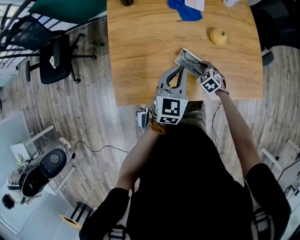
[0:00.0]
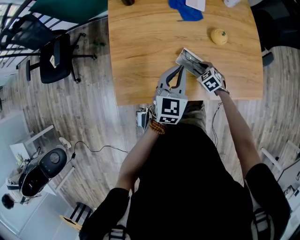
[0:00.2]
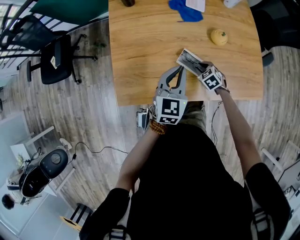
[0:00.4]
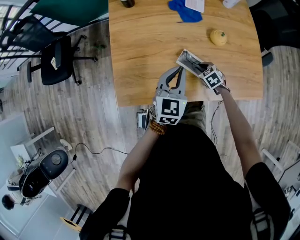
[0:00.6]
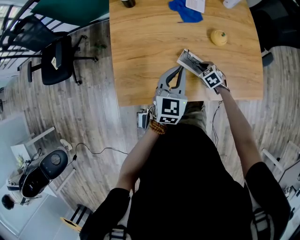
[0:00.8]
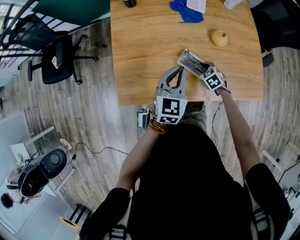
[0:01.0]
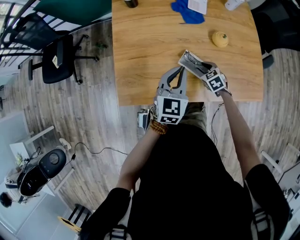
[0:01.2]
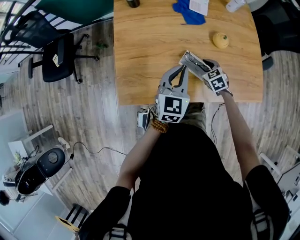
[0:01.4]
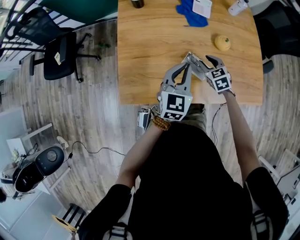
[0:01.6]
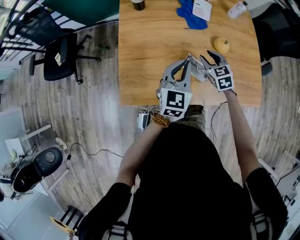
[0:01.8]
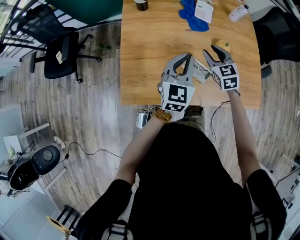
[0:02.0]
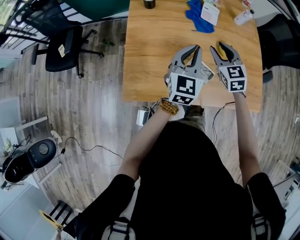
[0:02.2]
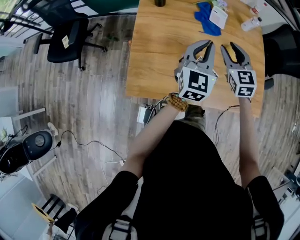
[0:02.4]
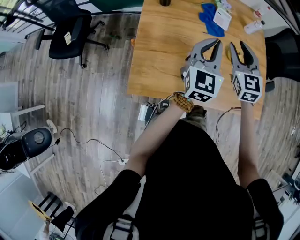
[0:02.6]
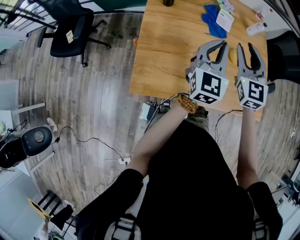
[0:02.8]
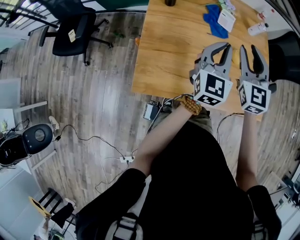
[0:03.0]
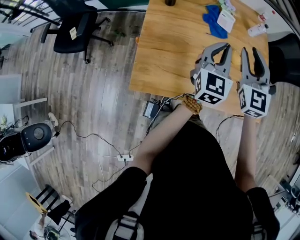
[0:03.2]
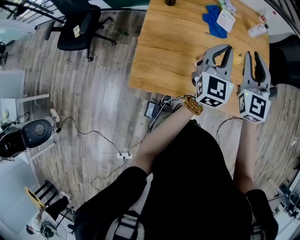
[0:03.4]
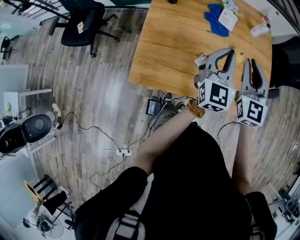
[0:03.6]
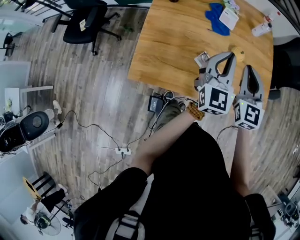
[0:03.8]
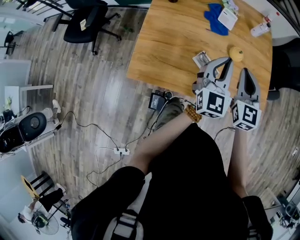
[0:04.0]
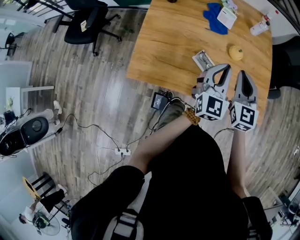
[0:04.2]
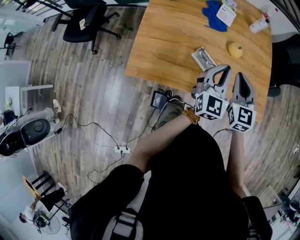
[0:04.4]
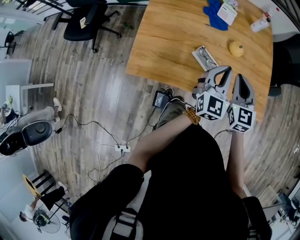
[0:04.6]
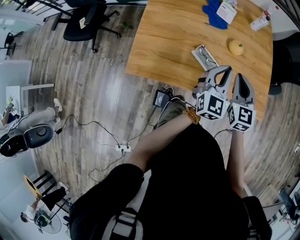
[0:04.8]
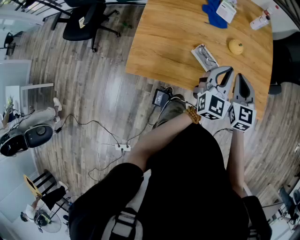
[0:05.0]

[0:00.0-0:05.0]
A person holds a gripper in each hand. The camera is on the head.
0:00.0 to 0:01.6: The right gripper heads upward, covering some 10 cm.
0:01.6 to 0:03.4: The left gripper shifts some 15 cm upward. The right gripper travels upward by some 30 cm, and points its fingers about 40 degrees further upward.
0:03.4 to 0:05.0: The left gripper heads to the right, backward and downward, covering some 15 cm; the right gripper travels downward, backward and to the right by about 20 cm.

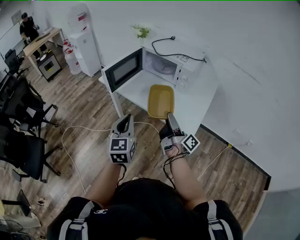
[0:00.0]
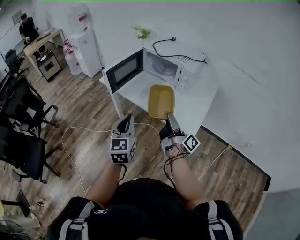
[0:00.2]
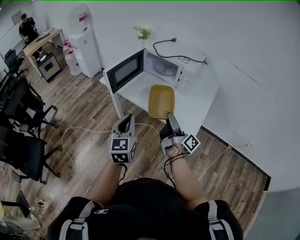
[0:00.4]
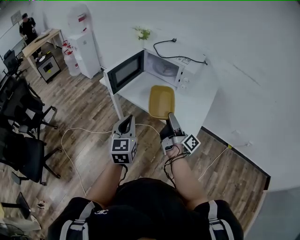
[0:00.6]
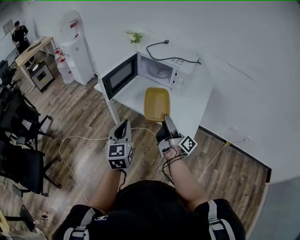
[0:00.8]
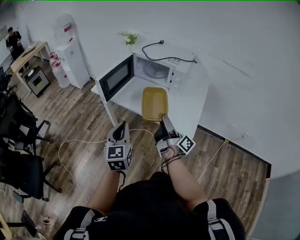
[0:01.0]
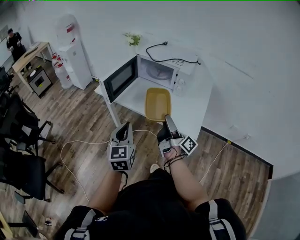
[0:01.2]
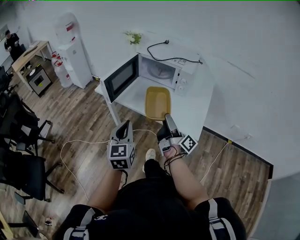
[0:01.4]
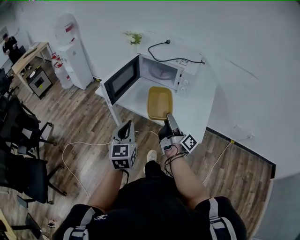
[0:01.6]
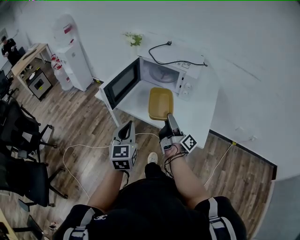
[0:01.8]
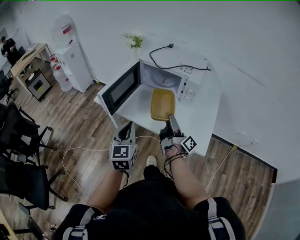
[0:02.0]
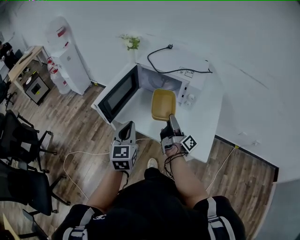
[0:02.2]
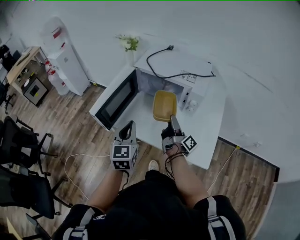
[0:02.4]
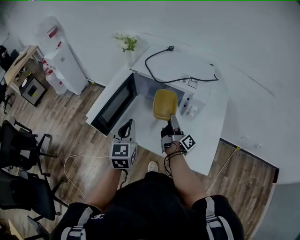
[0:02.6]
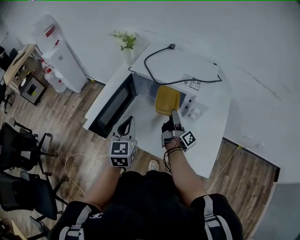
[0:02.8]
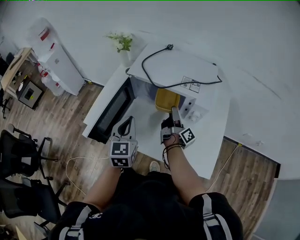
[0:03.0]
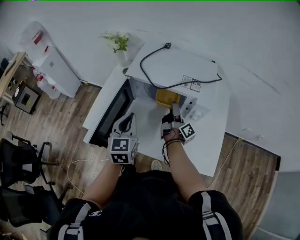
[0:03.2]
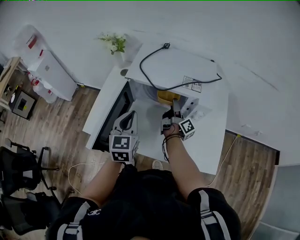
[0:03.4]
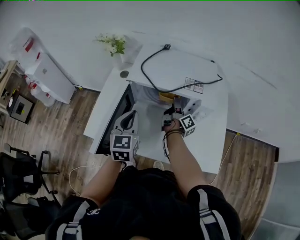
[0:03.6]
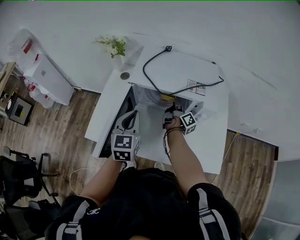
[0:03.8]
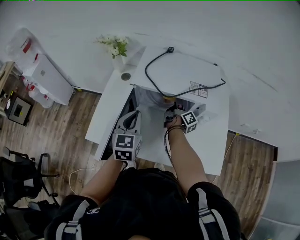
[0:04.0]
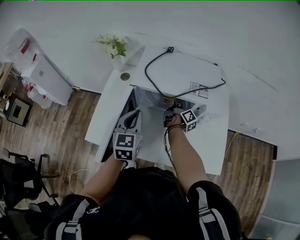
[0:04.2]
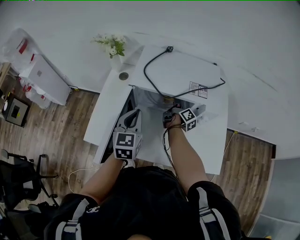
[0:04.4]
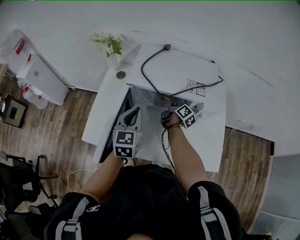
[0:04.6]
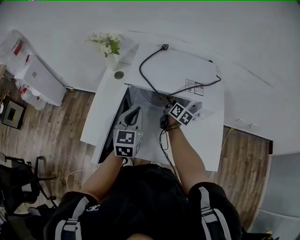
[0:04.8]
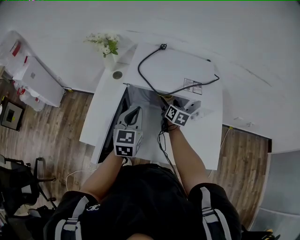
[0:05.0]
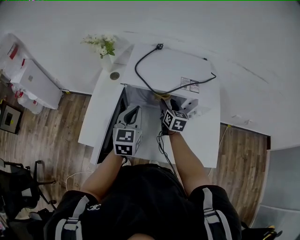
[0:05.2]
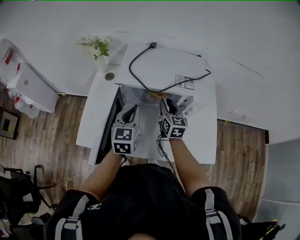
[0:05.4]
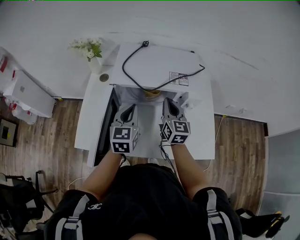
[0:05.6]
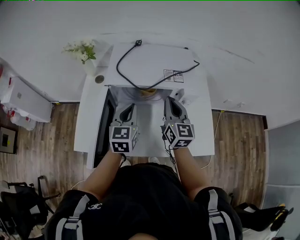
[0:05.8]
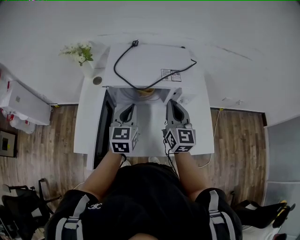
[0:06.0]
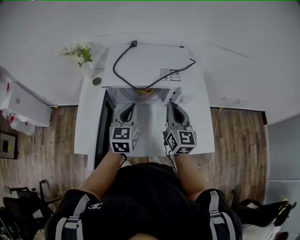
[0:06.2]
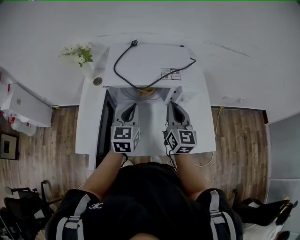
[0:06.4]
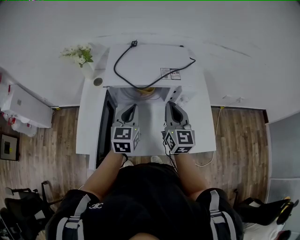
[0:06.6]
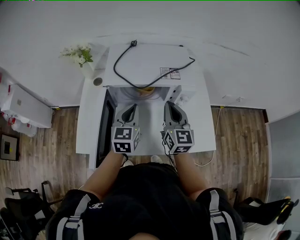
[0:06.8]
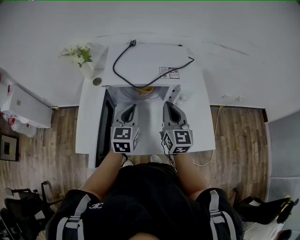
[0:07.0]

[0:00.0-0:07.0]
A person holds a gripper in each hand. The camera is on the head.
0:00.0 to 0:01.4: The two grippers go some 5 cm to the left.
0:01.4 to 0:02.8: The grippers both shift forward by some 40 cm.
0:02.8 to 0:04.2: Both grippers move forward, about 15 cm. The right gripper turns by roughly 30 degrees.
0:04.2 to 0:05.6: The left gripper changes place by about 5 cm; the right gripper is displaced upward and backward by about 15 cm, rolls counterclockwise, seen from behind, by some 70 degrees, and closes.
0:05.6 to 0:07.0: The right gripper goes approximately 5 cm backward.

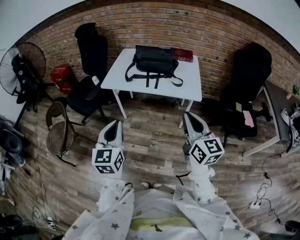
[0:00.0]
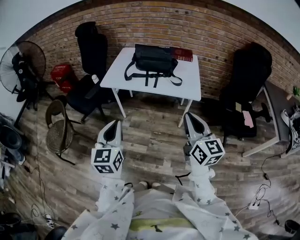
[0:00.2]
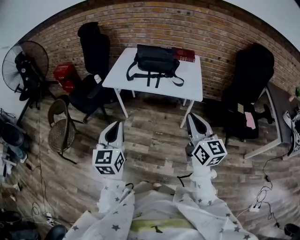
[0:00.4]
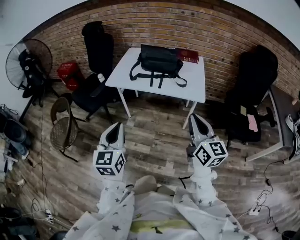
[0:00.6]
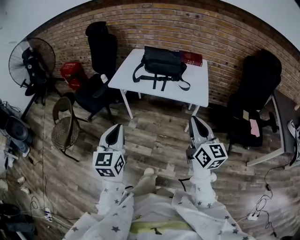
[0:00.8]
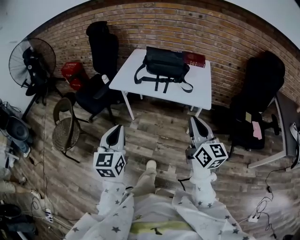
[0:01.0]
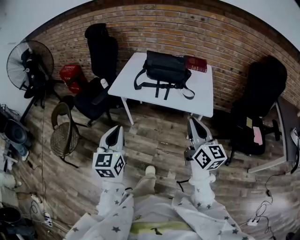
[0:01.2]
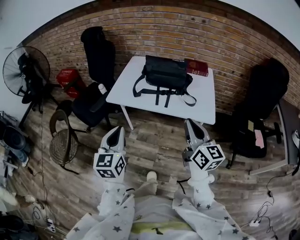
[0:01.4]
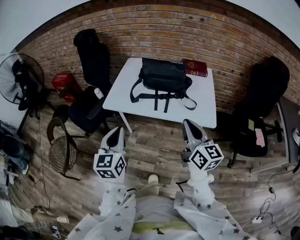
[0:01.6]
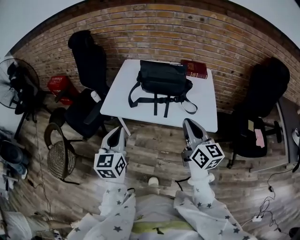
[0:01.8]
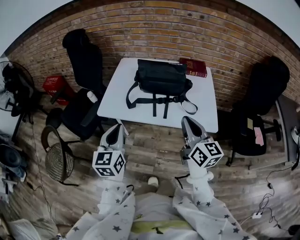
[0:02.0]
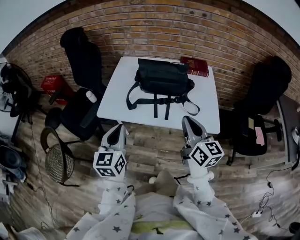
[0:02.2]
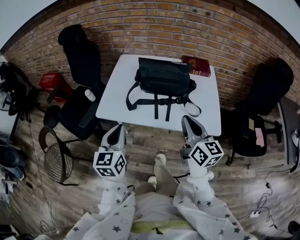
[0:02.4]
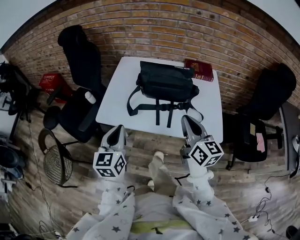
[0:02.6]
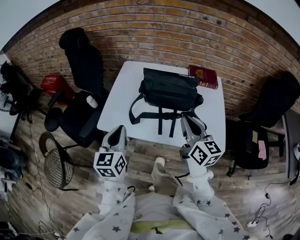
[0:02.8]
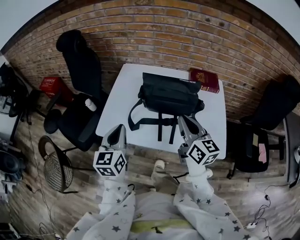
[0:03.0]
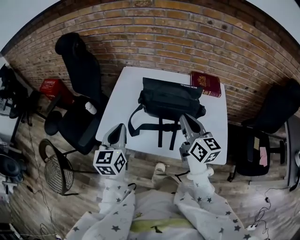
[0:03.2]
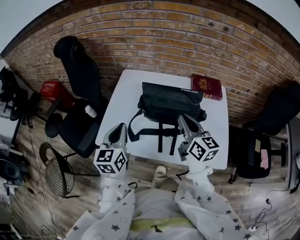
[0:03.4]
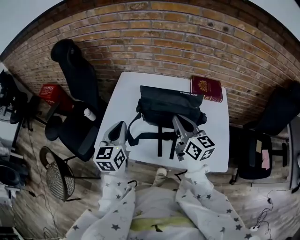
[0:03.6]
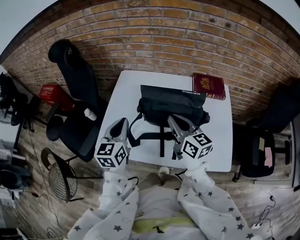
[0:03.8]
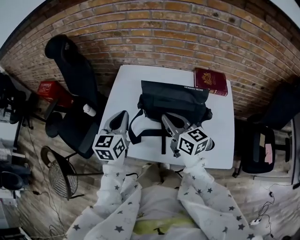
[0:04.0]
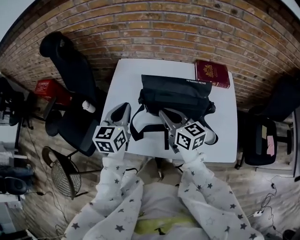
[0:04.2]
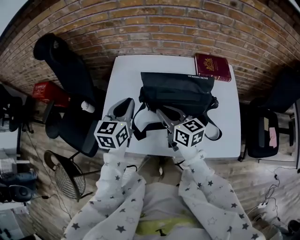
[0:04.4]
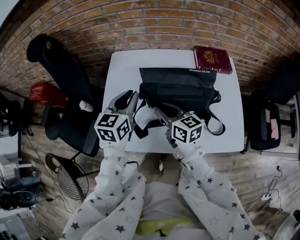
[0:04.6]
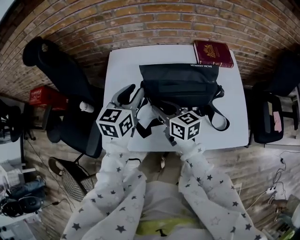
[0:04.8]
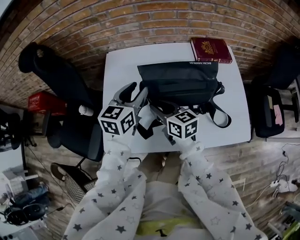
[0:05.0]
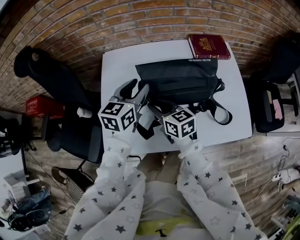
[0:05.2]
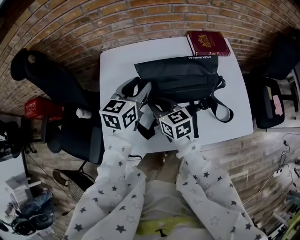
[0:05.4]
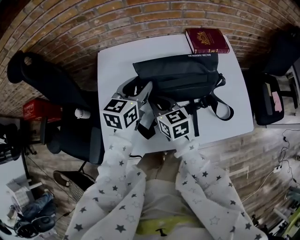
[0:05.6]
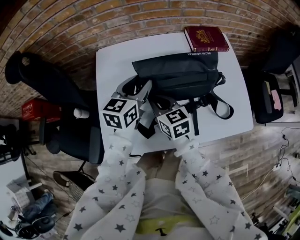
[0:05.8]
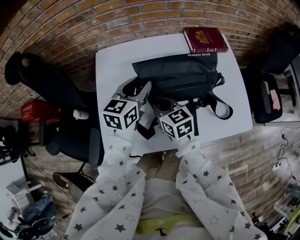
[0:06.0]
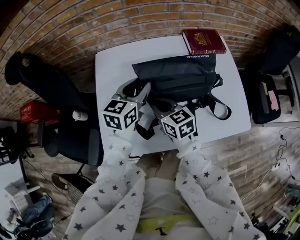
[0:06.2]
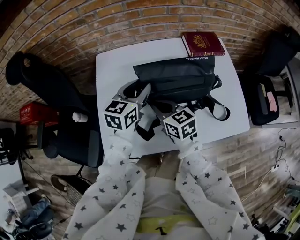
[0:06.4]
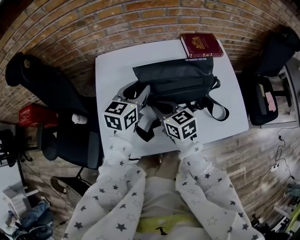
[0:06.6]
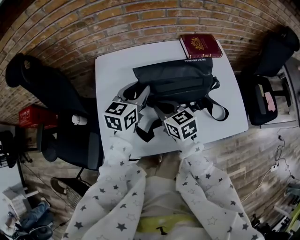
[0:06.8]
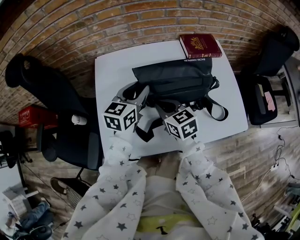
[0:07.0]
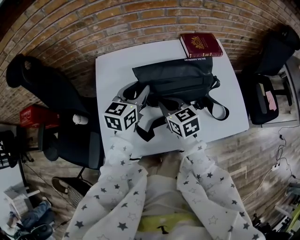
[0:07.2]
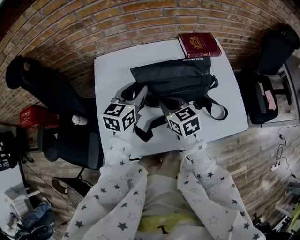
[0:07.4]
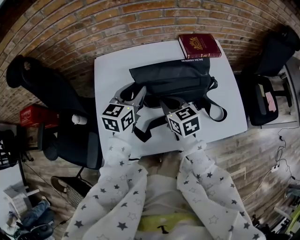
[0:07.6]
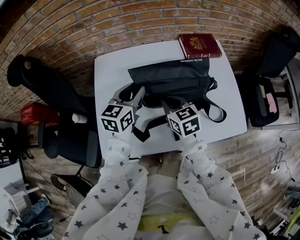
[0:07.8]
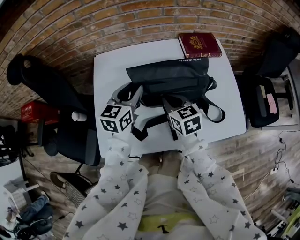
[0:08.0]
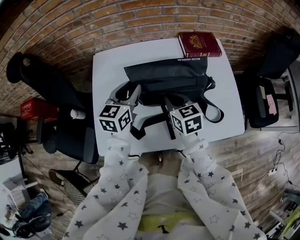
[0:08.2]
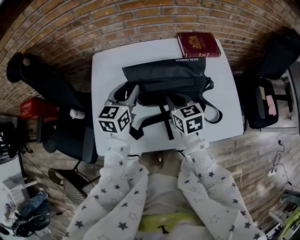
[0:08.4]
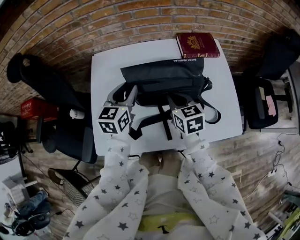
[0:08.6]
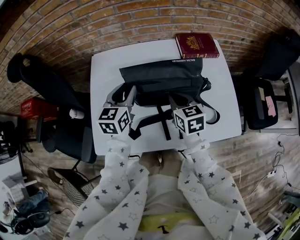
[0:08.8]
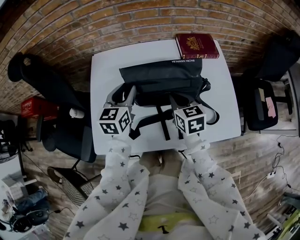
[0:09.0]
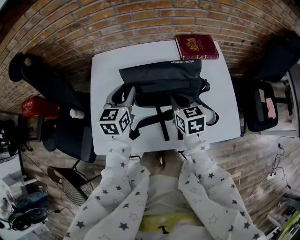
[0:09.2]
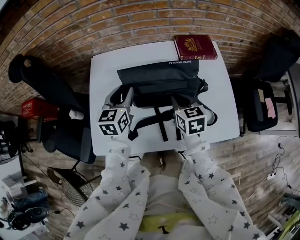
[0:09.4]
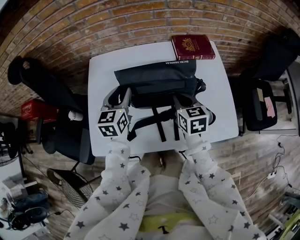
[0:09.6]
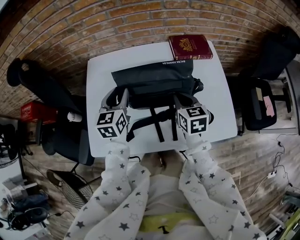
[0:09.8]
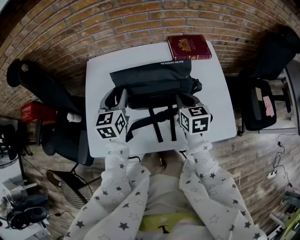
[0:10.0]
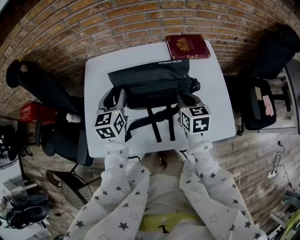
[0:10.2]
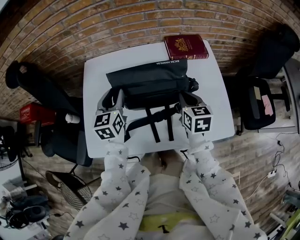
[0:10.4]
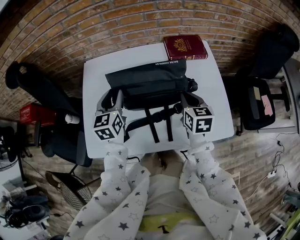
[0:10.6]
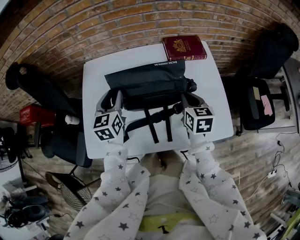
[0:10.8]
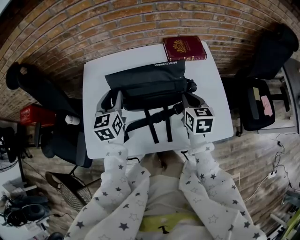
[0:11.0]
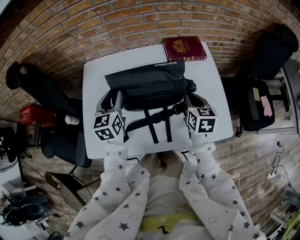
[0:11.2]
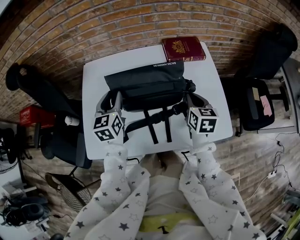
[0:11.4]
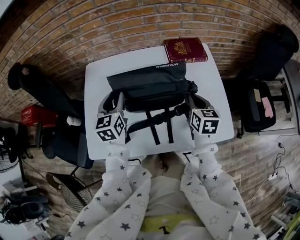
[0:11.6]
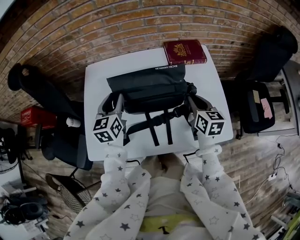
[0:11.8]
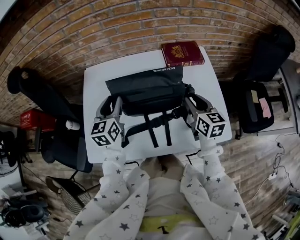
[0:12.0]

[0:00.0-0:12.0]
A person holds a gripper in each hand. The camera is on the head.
0:00.0 to 0:01.6: The two grippers go some 20 cm forward.
0:01.6 to 0:03.0: Both grippers move forward, approximately 25 cm.
0:03.0 to 0:04.4: The left gripper goes about 20 cm forward. The right gripper is displaced forward, downward and to the left by some 20 cm.
0:04.4 to 0:06.0: The left gripper shifts about 10 cm to the right and forward, changes its angle by approximately 20 degrees, and opens its fingers; the right gripper travels downward by some 5 cm.
0:06.0 to 0:07.6: The right gripper heads to the right, covering approximately 5 cm.
0:07.6 to 0:09.0: The right gripper heads to the right, covering about 10 cm.
0:09.0 to 0:10.4: The right gripper travels to the right by about 10 cm.
0:10.4 to 0:12.0: The right gripper ends up roughly 5 cm from where it was, and opens its fingers.
